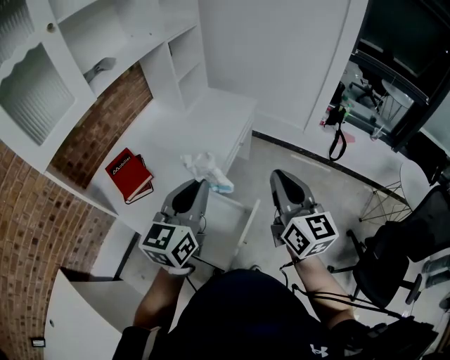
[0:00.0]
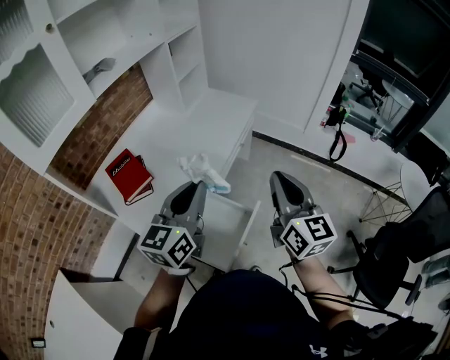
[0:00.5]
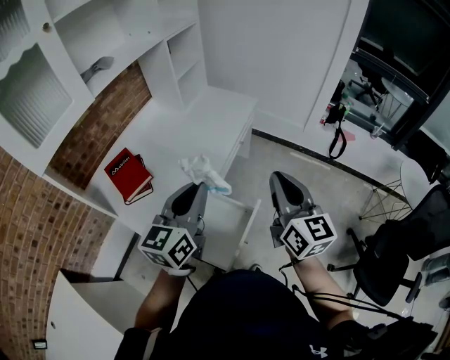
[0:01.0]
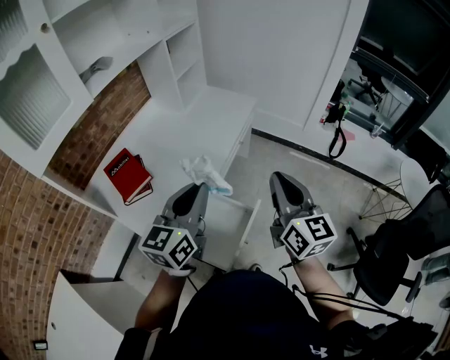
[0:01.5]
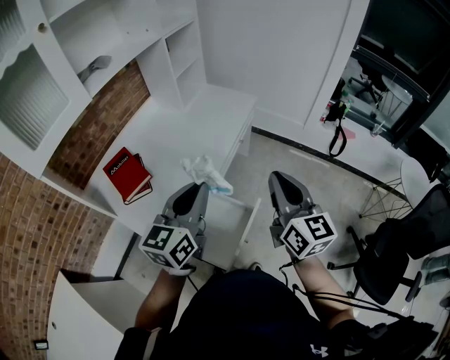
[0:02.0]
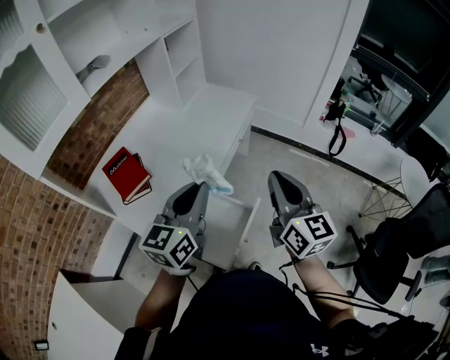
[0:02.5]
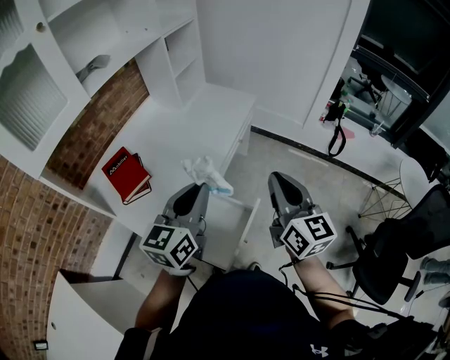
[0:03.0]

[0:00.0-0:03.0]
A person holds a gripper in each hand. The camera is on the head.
0:00.0 to 0:01.5: There are only small adjustments of the grippers.
0:01.5 to 0:03.0: Neither gripper changes place.

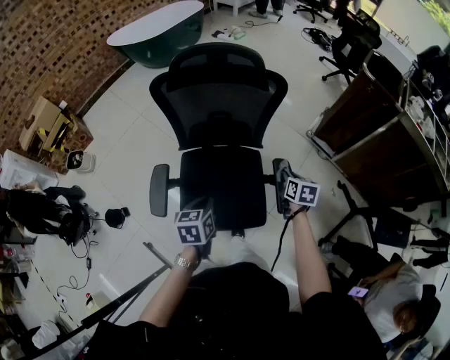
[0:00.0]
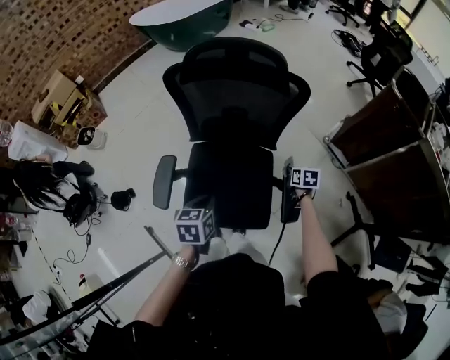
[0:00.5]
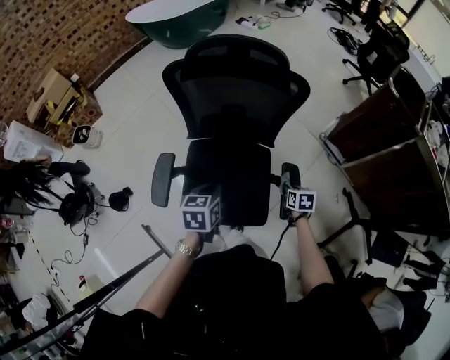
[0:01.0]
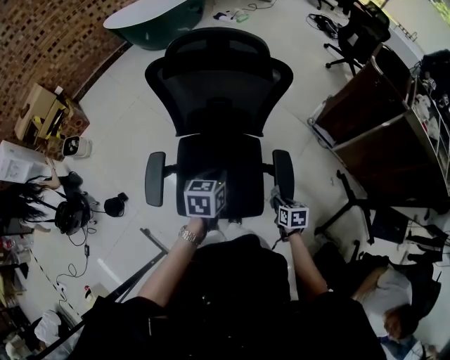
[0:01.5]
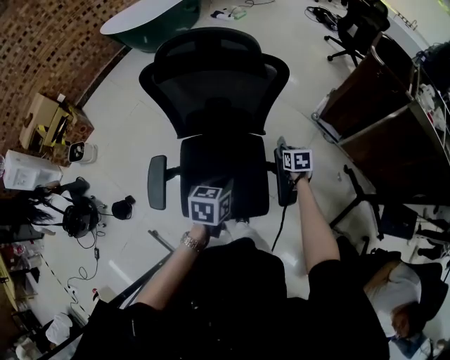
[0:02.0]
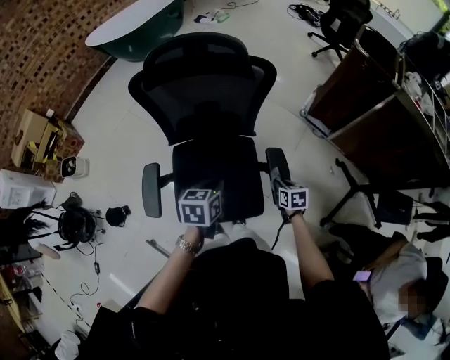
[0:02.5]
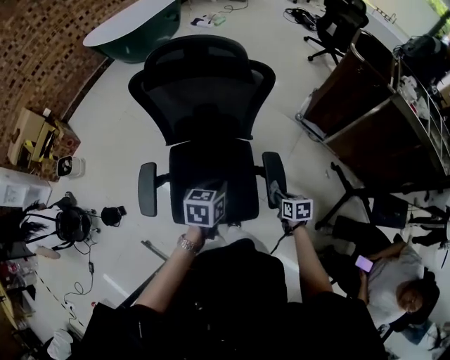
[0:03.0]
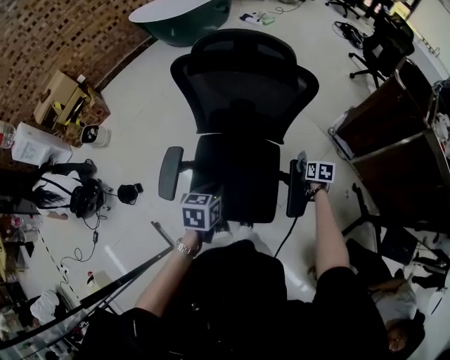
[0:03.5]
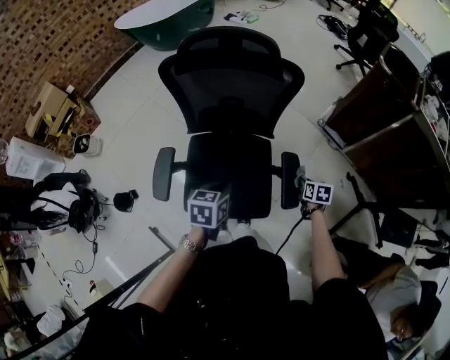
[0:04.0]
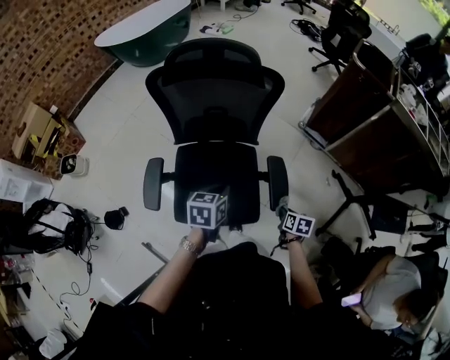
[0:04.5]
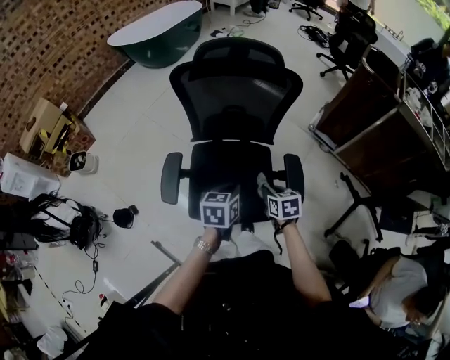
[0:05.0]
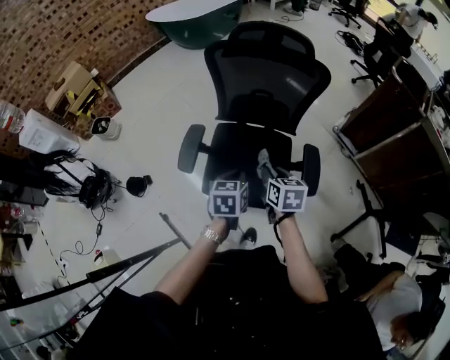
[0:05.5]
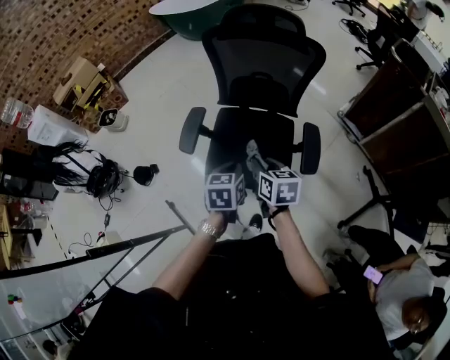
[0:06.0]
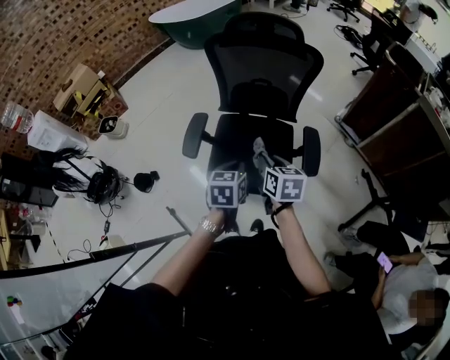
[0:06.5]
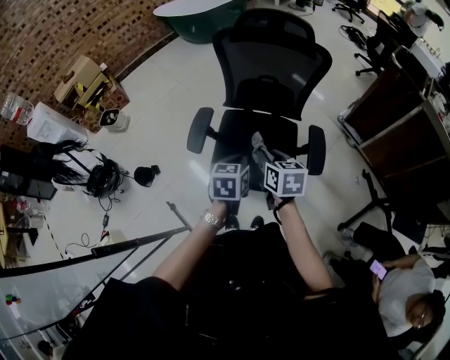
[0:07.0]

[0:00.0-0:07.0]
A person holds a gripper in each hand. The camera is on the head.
0:00.0 to 0:02.0: The right gripper swings forward and backward, approximately 20 cm each way, with 2 reversals. Meanwhile the left gripper is displaced to the right and forward by approximately 10 cm.
0:02.0 to 0:03.5: The right gripper goes backward and returns, about 20 cm each way; the left gripper moves to the left, about 10 cm.
0:03.5 to 0:05.0: The right gripper moves to the left, backward and upward, roughly 25 cm.
0:05.0 to 0:07.0: The right gripper shifts roughly 20 cm upward, to the left and backward; the left gripper shifts about 10 cm backward and to the left.

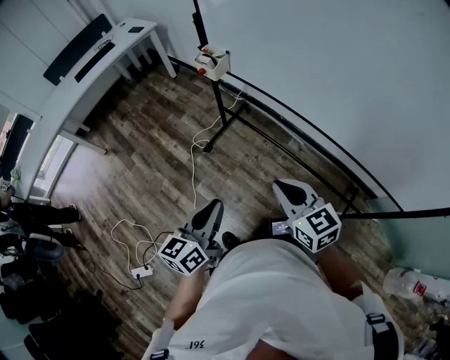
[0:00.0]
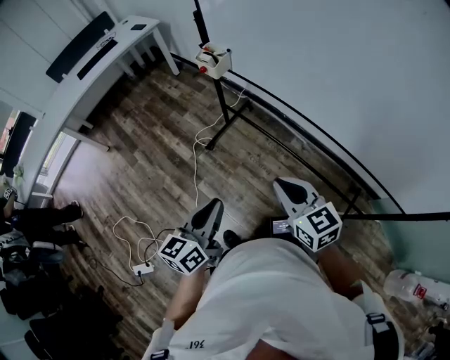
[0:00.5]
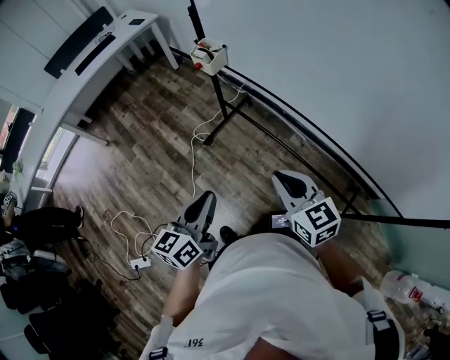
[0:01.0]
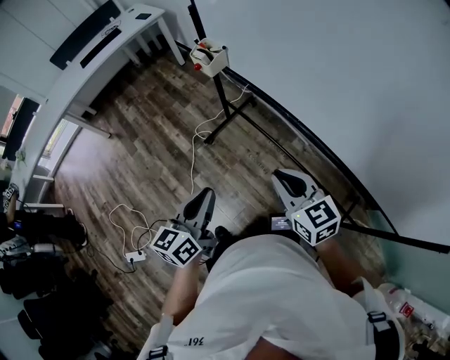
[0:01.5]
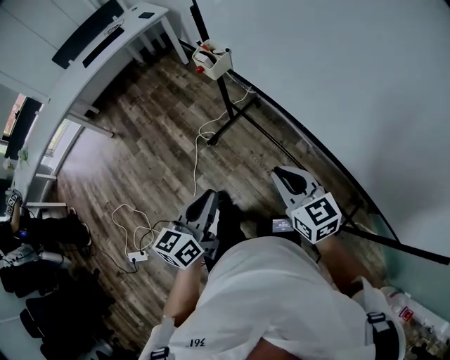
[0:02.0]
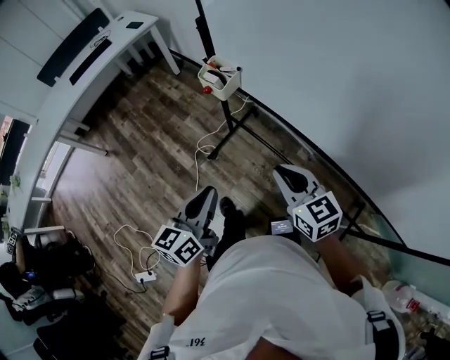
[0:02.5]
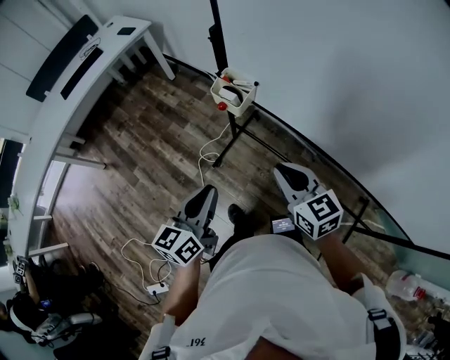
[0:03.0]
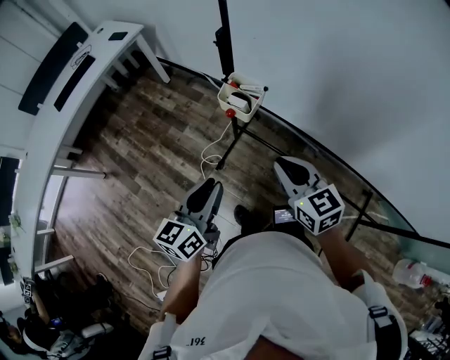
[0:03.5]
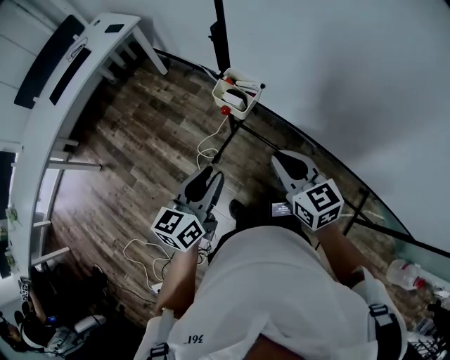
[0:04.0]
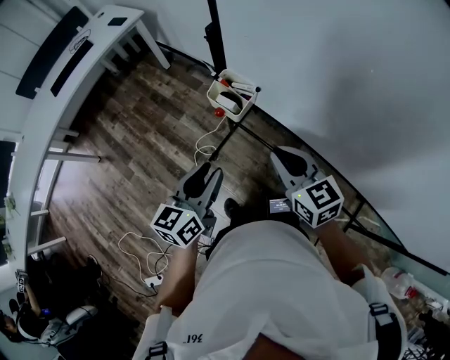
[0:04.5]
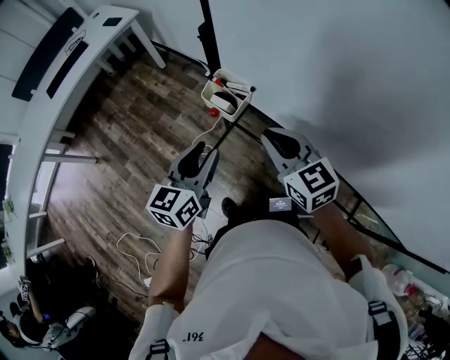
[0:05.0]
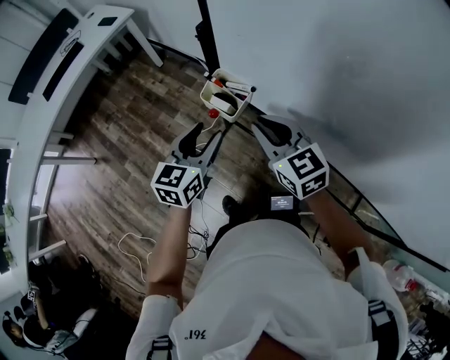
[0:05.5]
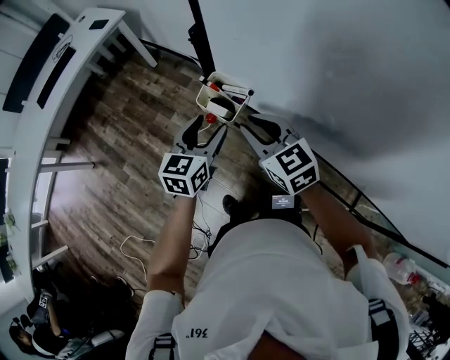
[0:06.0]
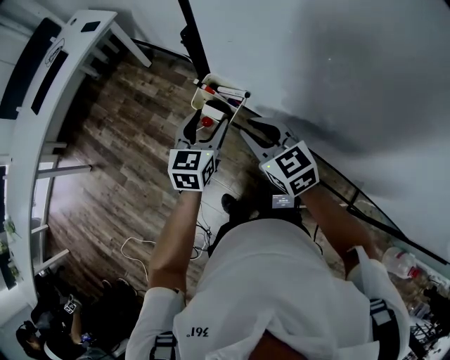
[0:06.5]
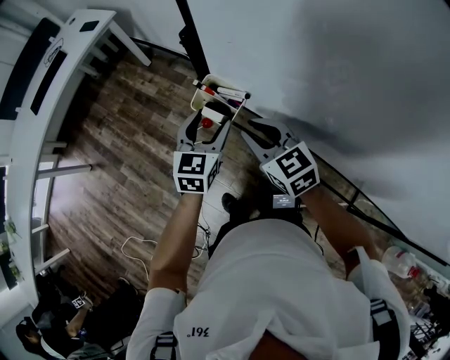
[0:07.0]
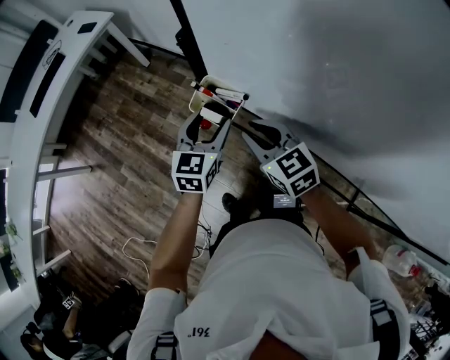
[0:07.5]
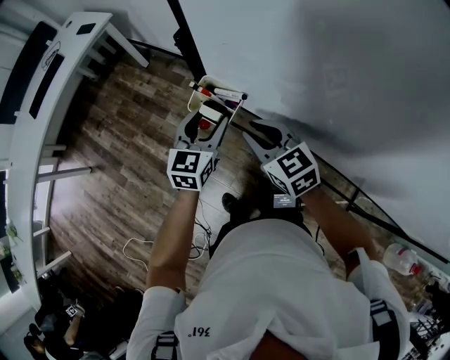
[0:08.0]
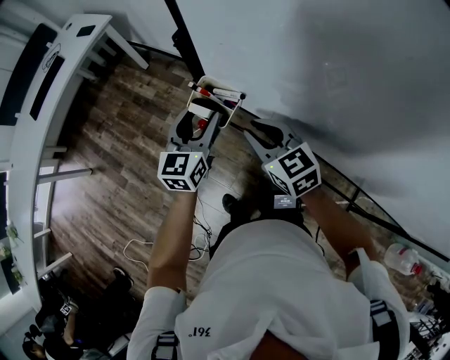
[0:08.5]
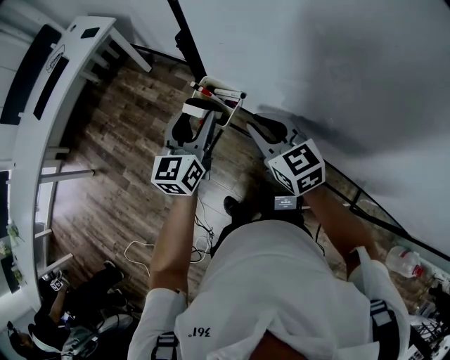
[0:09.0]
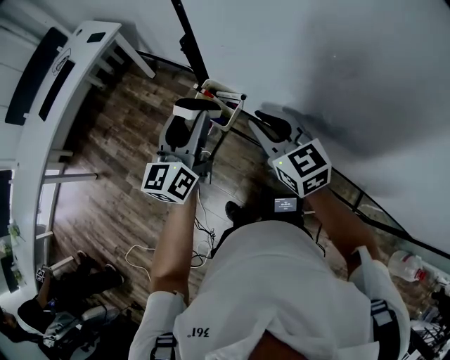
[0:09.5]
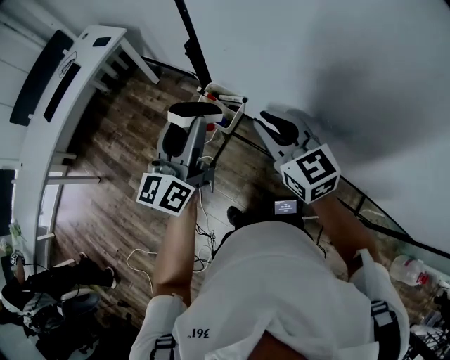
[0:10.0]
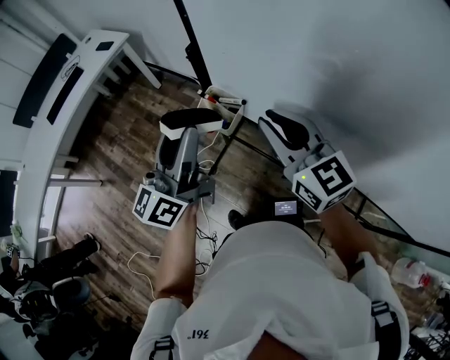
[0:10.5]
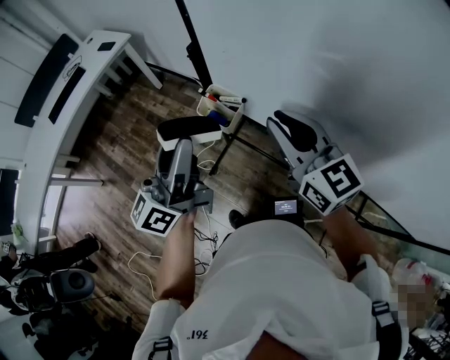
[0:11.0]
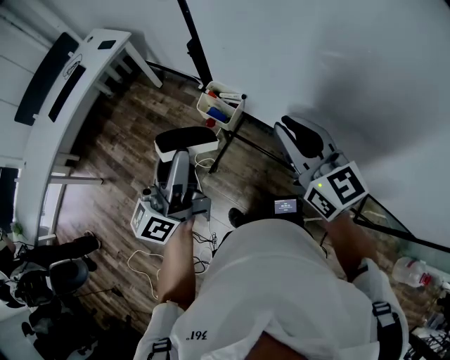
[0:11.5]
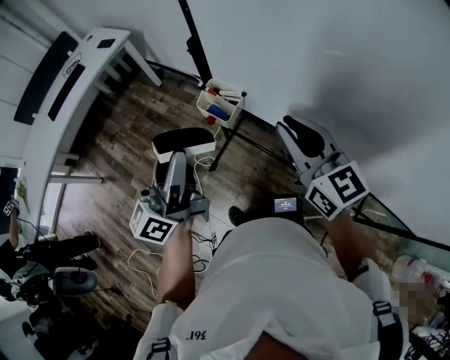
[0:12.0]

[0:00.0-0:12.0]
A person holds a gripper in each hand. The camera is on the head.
0:00.0 to 0:02.0: The two grippers go some 10 cm forward and to the right.
0:02.0 to 0:04.0: Both grippers travel together forward and to the left, roughly 30 cm. The left gripper opens.
0:04.0 to 0:06.0: The two grippers go some 15 cm forward. The left gripper opens.
0:06.0 to 0:08.0: The grippers stay close to where they were, moving slightly.
0:08.0 to 0:10.0: Both grippers move upward, approximately 15 cm. The left gripper rotates some 30 degrees.
0:10.0 to 0:12.0: The left gripper moves backward, about 10 cm, and changes its angle by about 20 degrees. Meanwhile the right gripper is displaced backward and upward by about 10 cm.

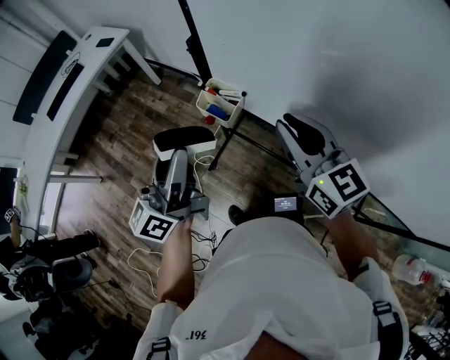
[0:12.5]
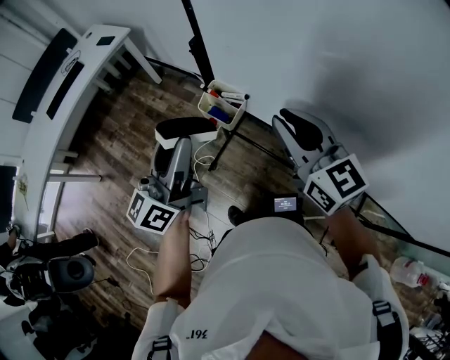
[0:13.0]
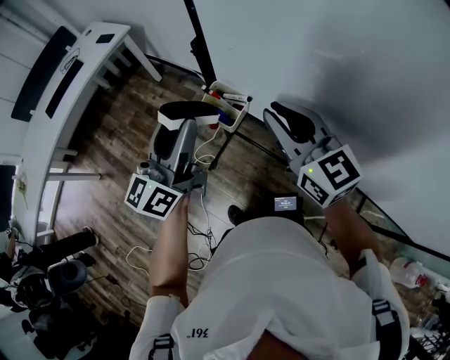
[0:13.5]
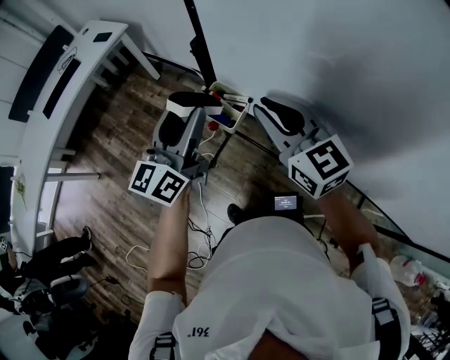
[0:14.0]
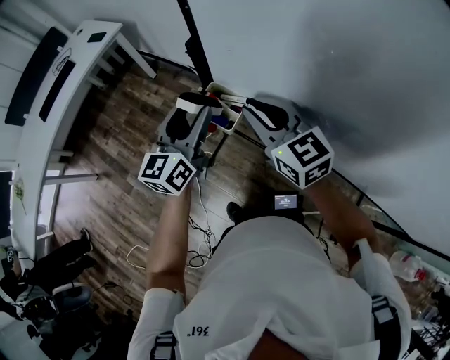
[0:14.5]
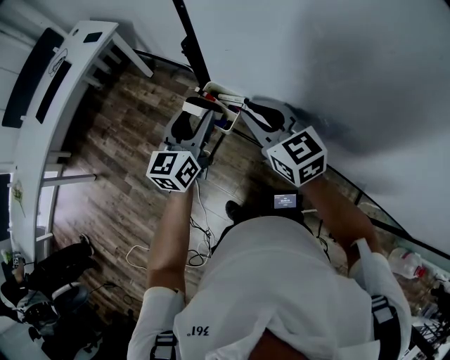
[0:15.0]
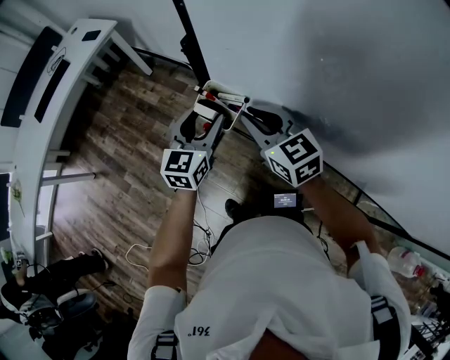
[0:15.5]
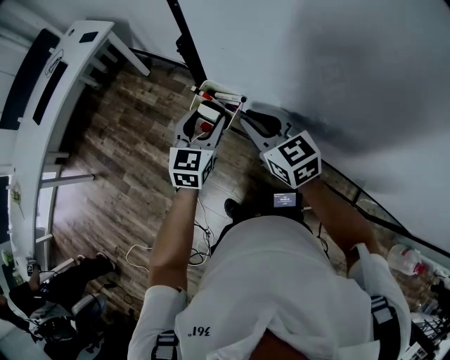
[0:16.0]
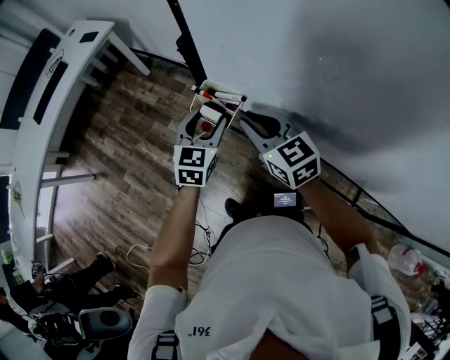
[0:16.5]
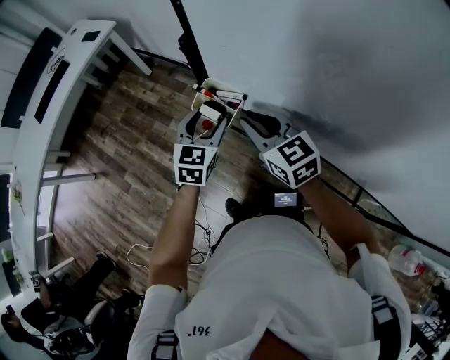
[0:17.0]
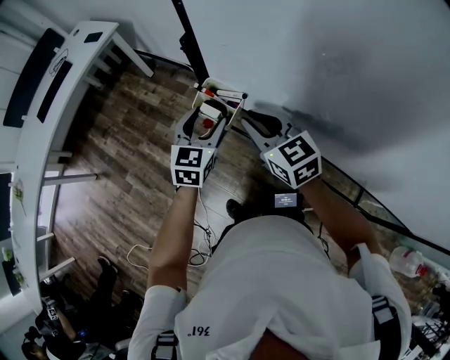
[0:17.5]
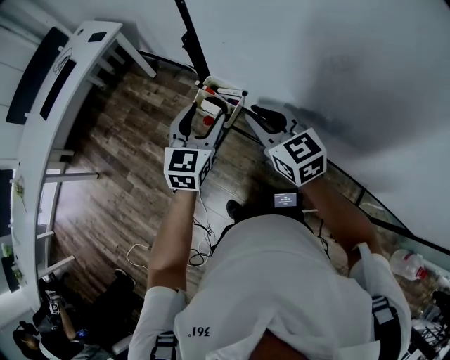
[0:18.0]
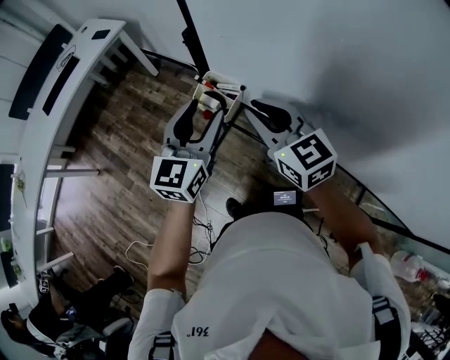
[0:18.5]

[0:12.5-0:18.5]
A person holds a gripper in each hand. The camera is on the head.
0:12.5 to 0:14.5: The right gripper travels forward, downward and to the left by roughly 15 cm, while the left gripper travels forward and downward by some 15 cm, and changes its angle by about 30 degrees.
0:14.5 to 0:16.5: The right gripper moves downward, about 5 cm. The left gripper is displaced downward and to the right by some 15 cm, and turns by about 30 degrees.
0:16.5 to 0:18.5: The right gripper moves upward, some 10 cm; the left gripper moves upward and backward, approximately 15 cm.
